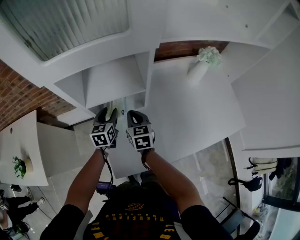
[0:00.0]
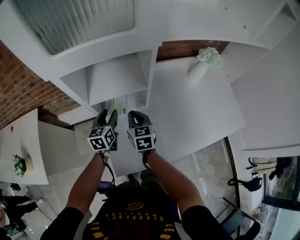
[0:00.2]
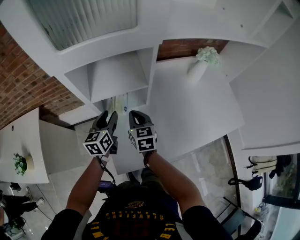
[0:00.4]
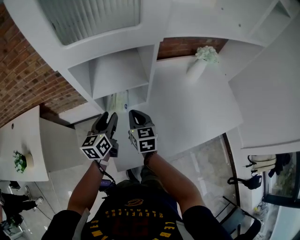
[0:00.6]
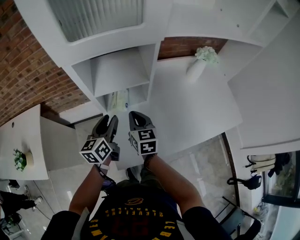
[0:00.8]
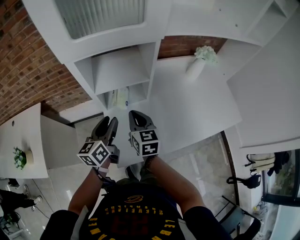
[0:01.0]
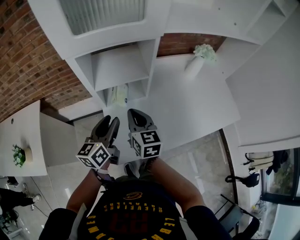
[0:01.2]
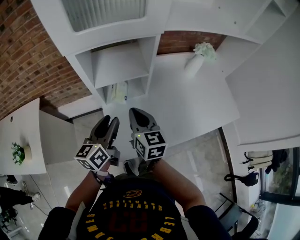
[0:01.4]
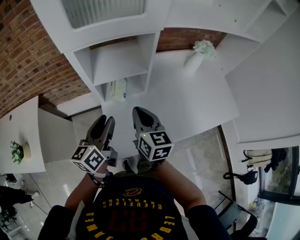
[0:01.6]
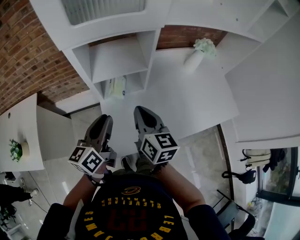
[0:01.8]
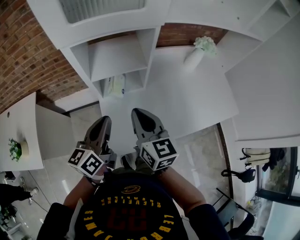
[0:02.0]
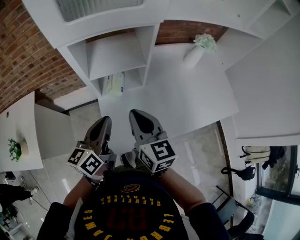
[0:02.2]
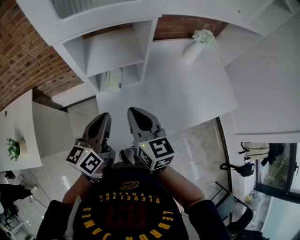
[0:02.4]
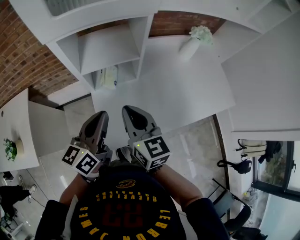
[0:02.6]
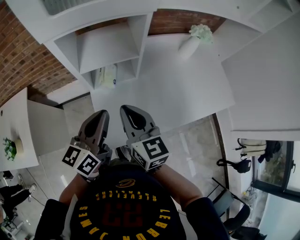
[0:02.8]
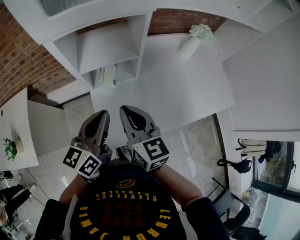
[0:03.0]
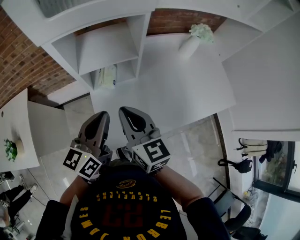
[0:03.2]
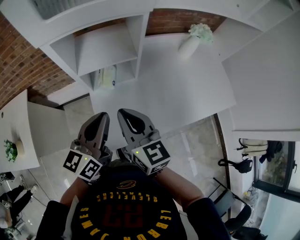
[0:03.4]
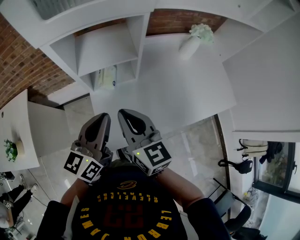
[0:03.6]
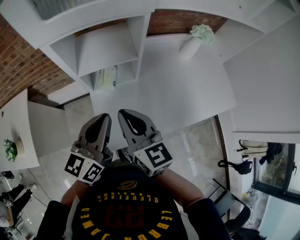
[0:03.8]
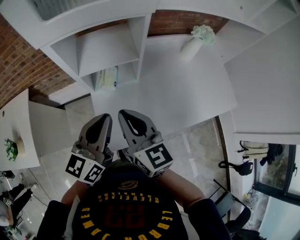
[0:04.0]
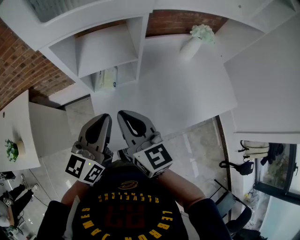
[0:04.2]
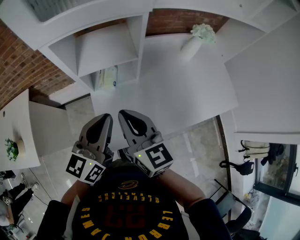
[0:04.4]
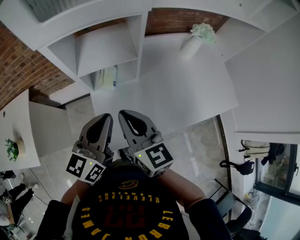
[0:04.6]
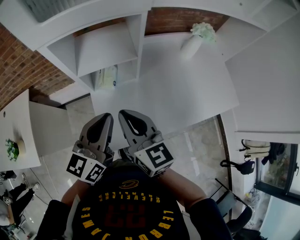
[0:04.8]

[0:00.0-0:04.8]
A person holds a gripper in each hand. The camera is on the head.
0:00.0 to 0:01.6: The left gripper is displaced backward and upward by some 25 cm, and turns by some 30 degrees, while the right gripper shifts about 20 cm upward and backward.
0:01.6 to 0:03.2: The right gripper changes place by about 5 cm; the left gripper shifts by about 5 cm, and closes its fingers.
0:03.2 to 0:04.8: The grippers make only small movements.

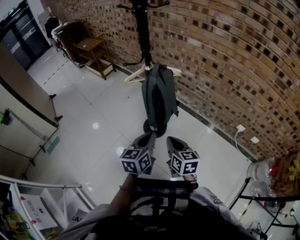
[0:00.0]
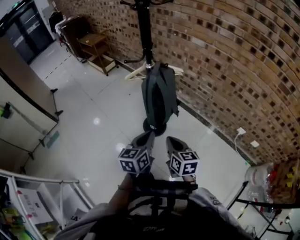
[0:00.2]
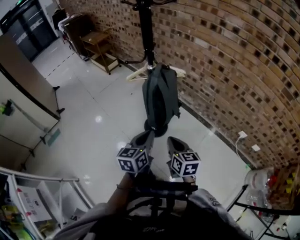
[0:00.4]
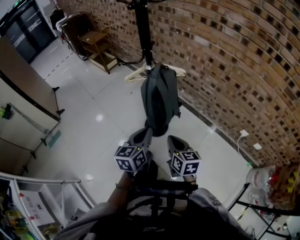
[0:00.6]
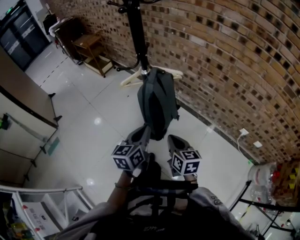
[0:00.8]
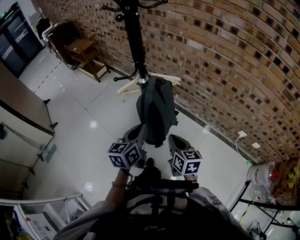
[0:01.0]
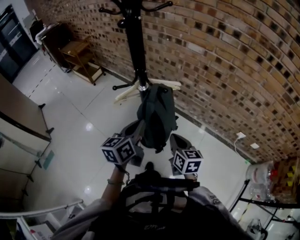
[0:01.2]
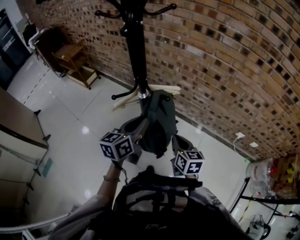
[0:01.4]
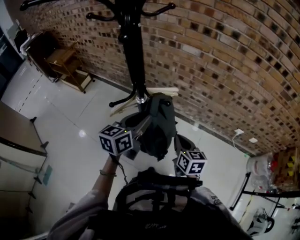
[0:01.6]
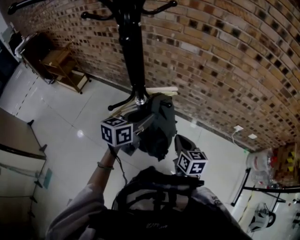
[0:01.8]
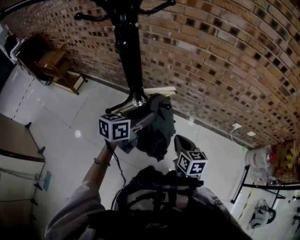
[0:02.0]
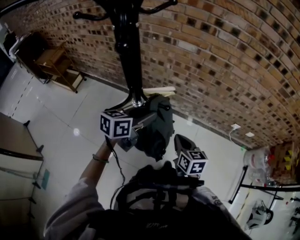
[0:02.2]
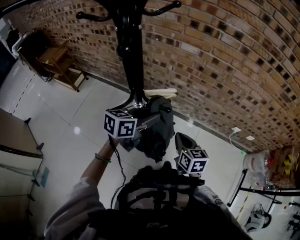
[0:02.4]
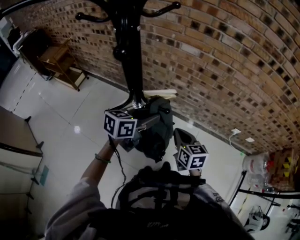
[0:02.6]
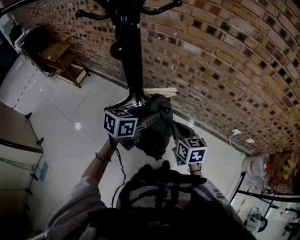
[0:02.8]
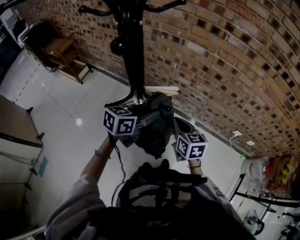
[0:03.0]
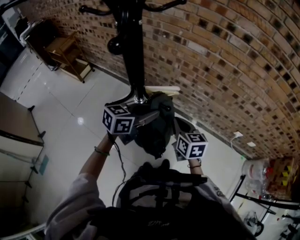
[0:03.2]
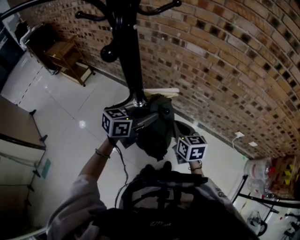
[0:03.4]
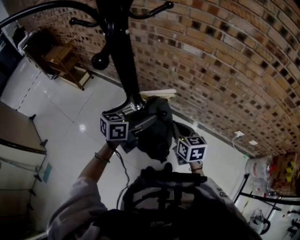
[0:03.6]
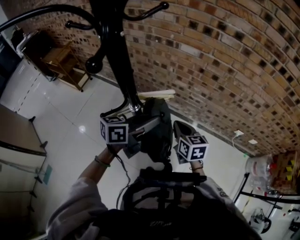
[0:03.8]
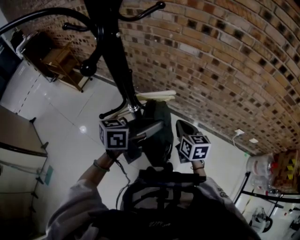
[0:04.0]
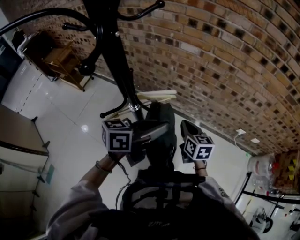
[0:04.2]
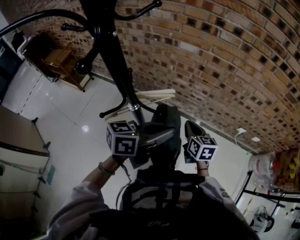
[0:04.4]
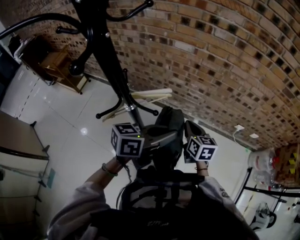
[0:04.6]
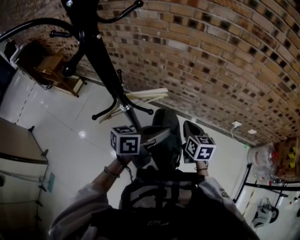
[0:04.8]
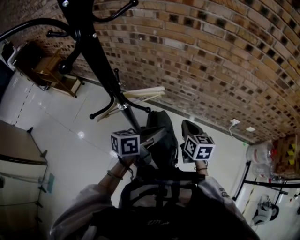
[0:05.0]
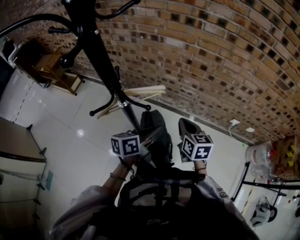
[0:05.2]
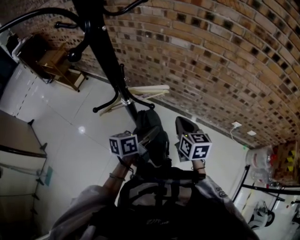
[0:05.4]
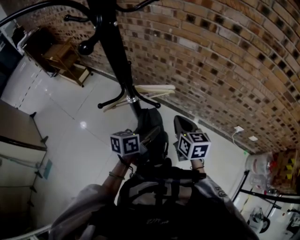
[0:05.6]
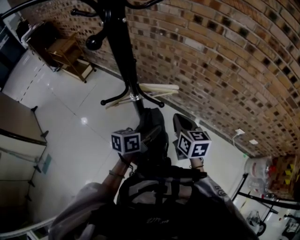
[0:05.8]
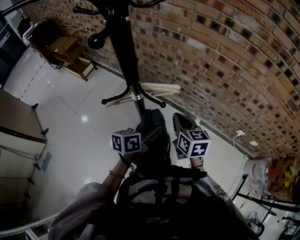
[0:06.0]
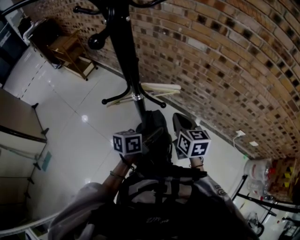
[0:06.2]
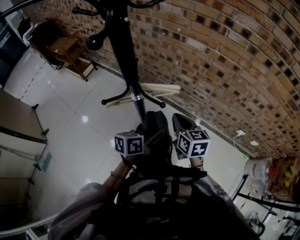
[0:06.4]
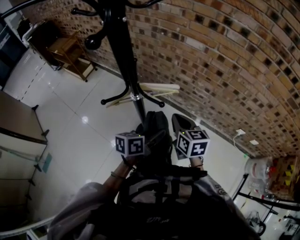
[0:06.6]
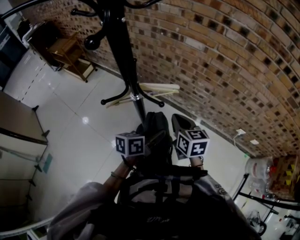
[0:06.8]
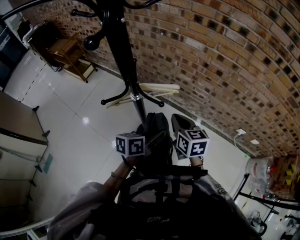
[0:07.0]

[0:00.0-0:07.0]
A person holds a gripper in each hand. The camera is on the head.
0:00.0 to 0:01.4: The two grippers go some 25 cm forward.
0:01.4 to 0:02.8: Both grippers travel together forward, about 10 cm. The left gripper changes its angle by about 30 degrees.
0:02.8 to 0:04.2: The left gripper travels upward and to the right by approximately 10 cm, rotates about 20 degrees, and closes. Meanwhile the right gripper moves about 5 cm.
0:04.2 to 0:05.6: The left gripper is displaced downward by about 15 cm, and changes its angle by roughly 30 degrees.
0:05.6 to 0:07.0: There are only small adjustments of the grippers.

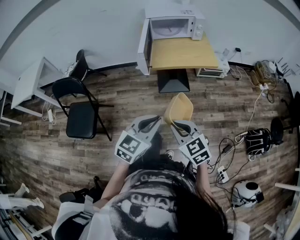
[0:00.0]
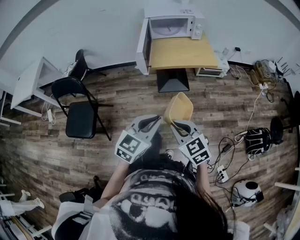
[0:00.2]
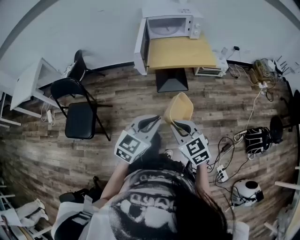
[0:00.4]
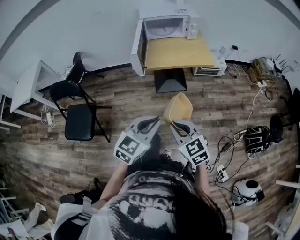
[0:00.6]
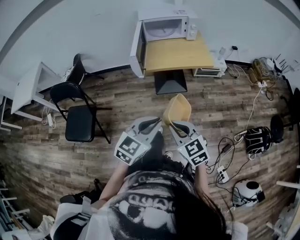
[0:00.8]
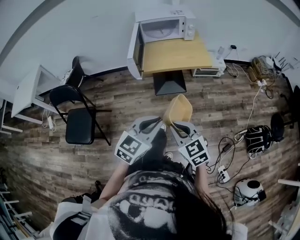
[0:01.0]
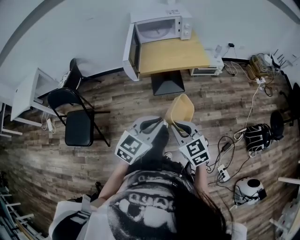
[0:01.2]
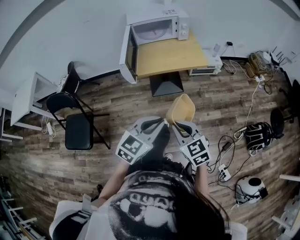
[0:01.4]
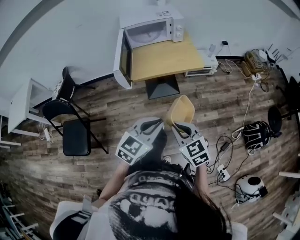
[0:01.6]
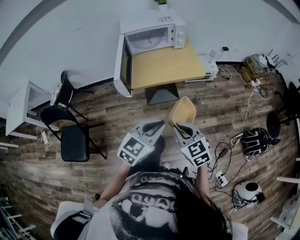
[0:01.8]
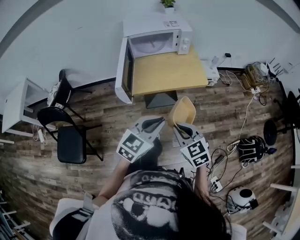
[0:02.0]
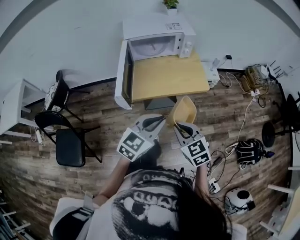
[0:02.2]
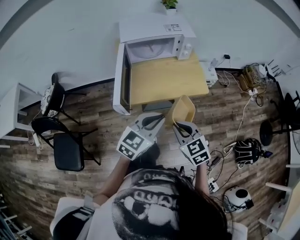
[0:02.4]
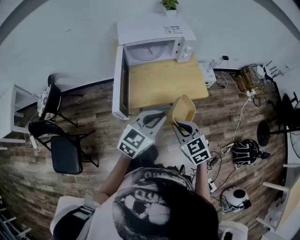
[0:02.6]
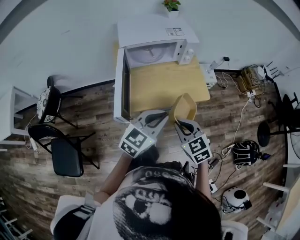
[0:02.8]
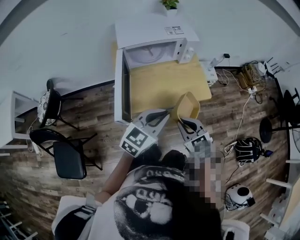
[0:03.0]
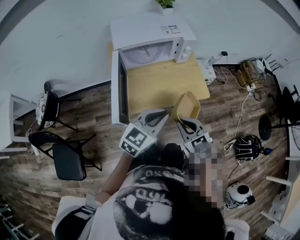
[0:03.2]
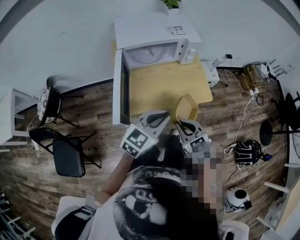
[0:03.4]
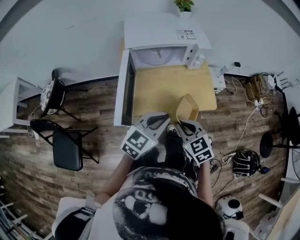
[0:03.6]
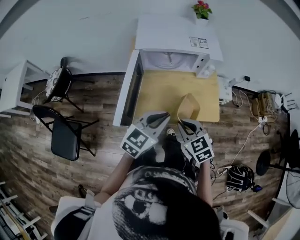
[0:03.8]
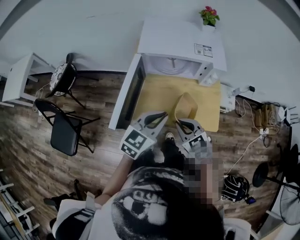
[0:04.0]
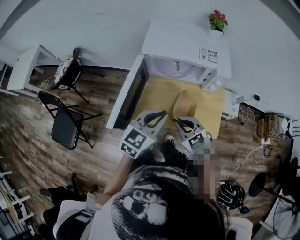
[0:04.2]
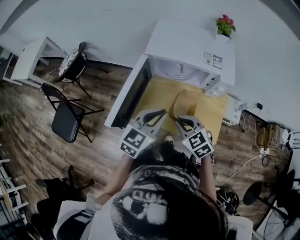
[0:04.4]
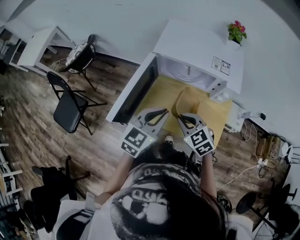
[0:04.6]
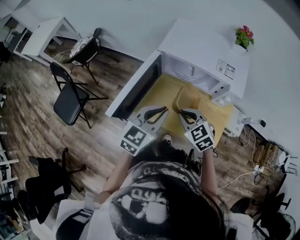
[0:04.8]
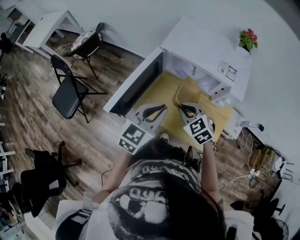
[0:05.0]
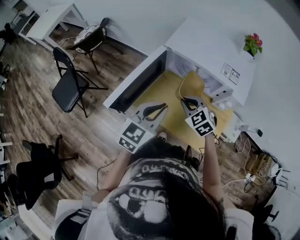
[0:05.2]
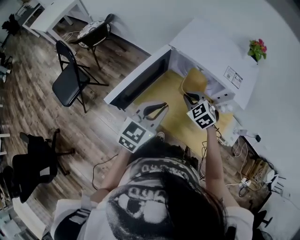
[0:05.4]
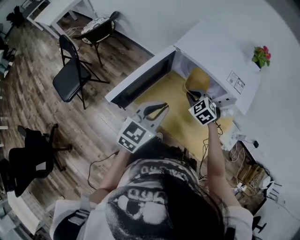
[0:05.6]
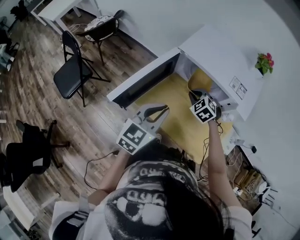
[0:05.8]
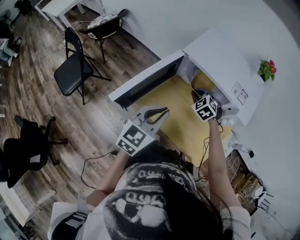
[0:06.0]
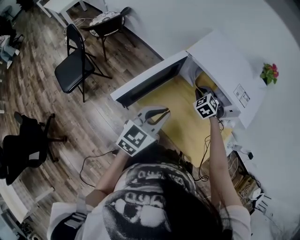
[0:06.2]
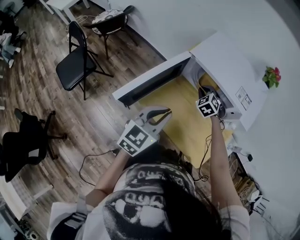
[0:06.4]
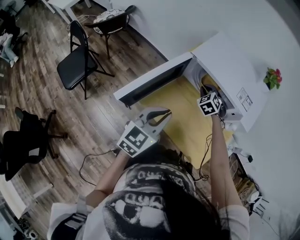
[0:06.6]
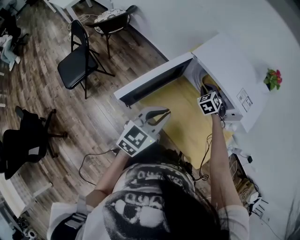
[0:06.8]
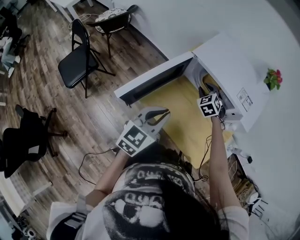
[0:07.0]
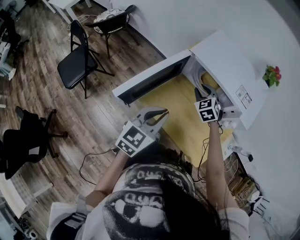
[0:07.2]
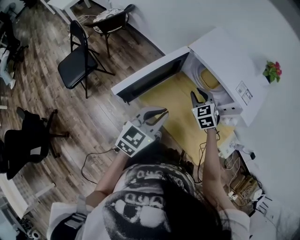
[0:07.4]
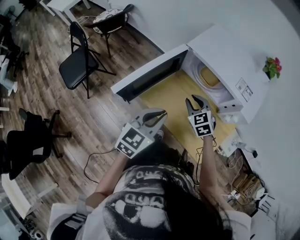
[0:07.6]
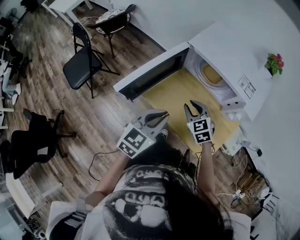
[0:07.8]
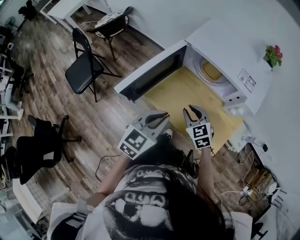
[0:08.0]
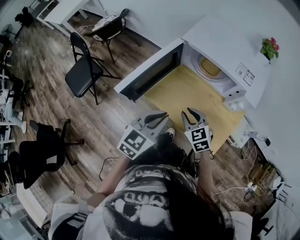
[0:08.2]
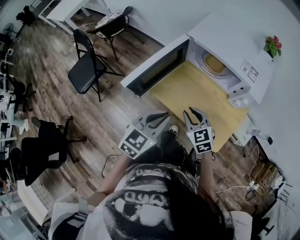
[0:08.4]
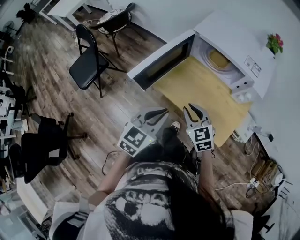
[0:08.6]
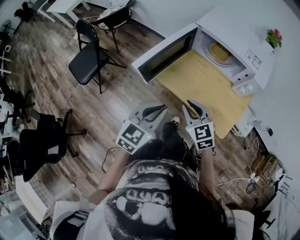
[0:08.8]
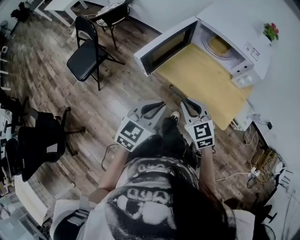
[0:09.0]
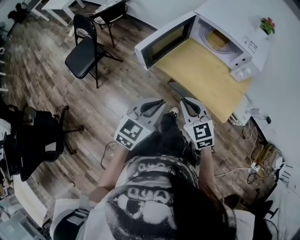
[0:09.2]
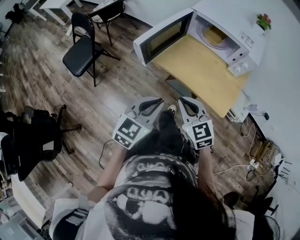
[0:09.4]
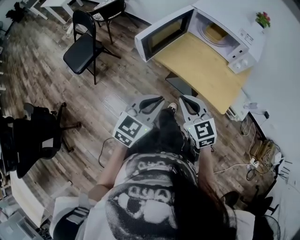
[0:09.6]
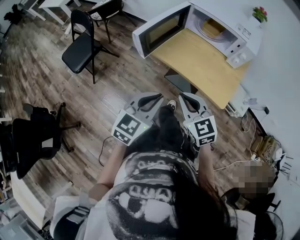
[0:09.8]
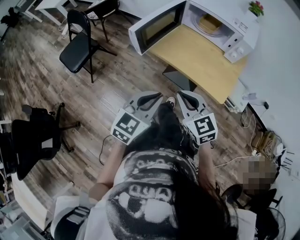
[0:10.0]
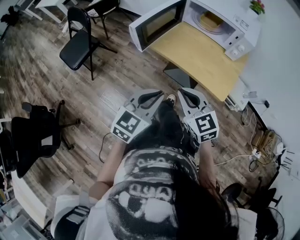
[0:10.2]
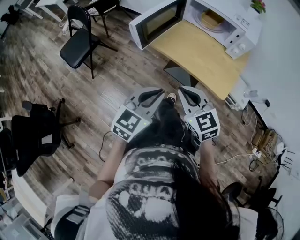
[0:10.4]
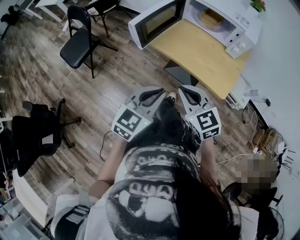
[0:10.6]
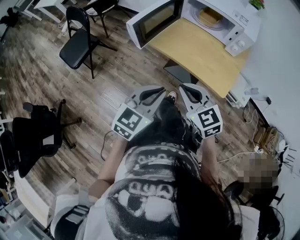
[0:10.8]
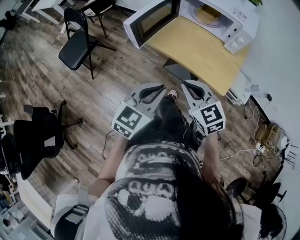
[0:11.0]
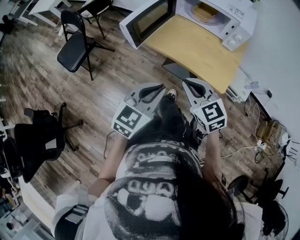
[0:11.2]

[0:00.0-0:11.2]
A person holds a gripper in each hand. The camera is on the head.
0:00.0 to 0:01.6: The right gripper heads forward and to the right, covering some 10 cm; the left gripper goes roughly 10 cm to the right and forward.
0:01.6 to 0:03.2: The grippers both shift forward by approximately 30 cm.
0:03.2 to 0:04.8: The right gripper moves some 20 cm, and rotates roughly 40 degrees; the left gripper shifts by about 15 cm, and rotates roughly 40 degrees.
0:04.8 to 0:06.4: The right gripper heads forward and downward, covering approximately 20 cm, and changes its angle by some 30 degrees.
0:06.4 to 0:08.0: The left gripper goes approximately 5 cm backward. Meanwhile the right gripper heads backward, covering some 20 cm, and changes its angle by roughly 30 degrees.
0:08.0 to 0:09.6: The right gripper heads backward, covering approximately 25 cm, and closes its fingers; the left gripper goes roughly 20 cm backward and to the left.
0:09.6 to 0:11.2: The grippers move only a little.
